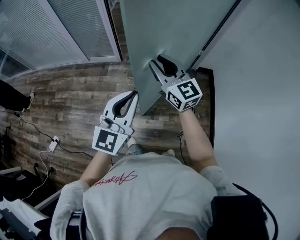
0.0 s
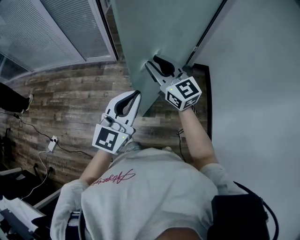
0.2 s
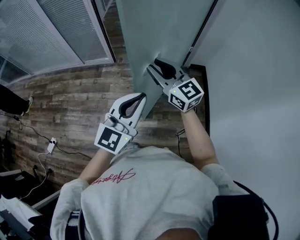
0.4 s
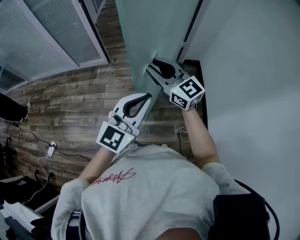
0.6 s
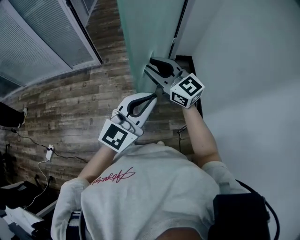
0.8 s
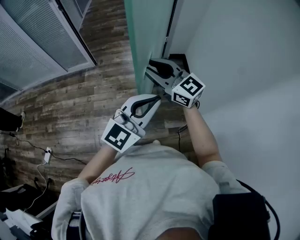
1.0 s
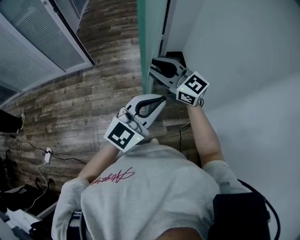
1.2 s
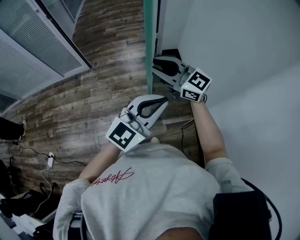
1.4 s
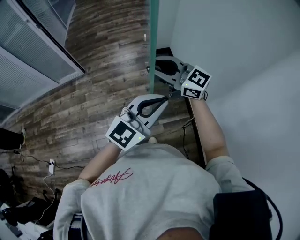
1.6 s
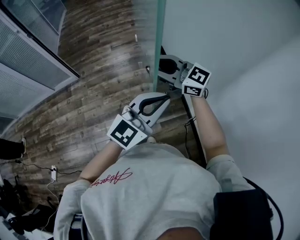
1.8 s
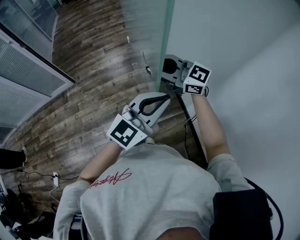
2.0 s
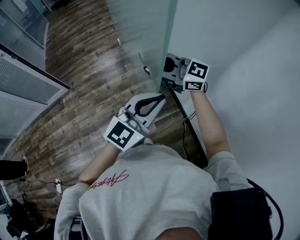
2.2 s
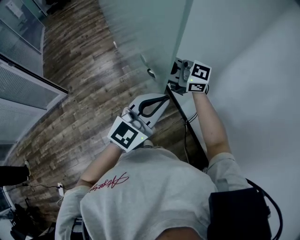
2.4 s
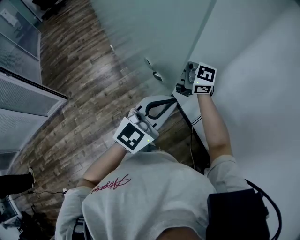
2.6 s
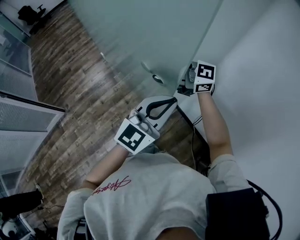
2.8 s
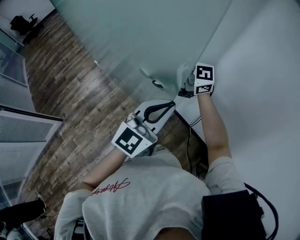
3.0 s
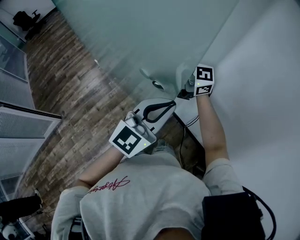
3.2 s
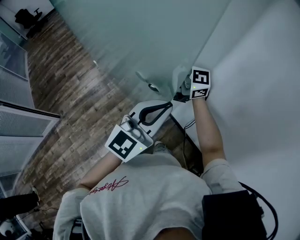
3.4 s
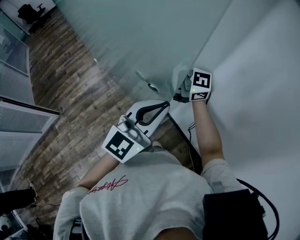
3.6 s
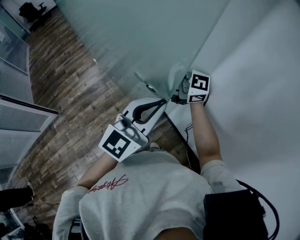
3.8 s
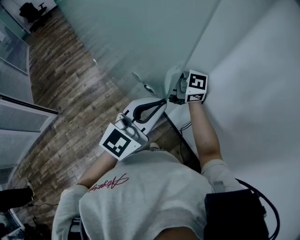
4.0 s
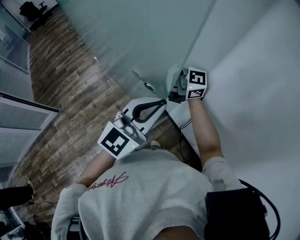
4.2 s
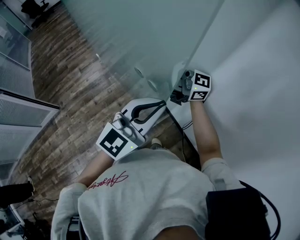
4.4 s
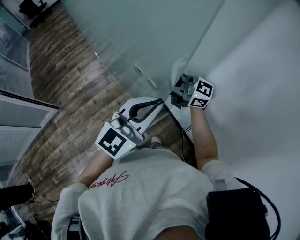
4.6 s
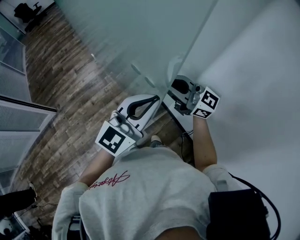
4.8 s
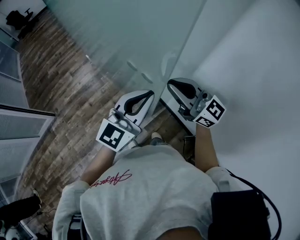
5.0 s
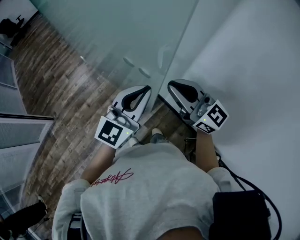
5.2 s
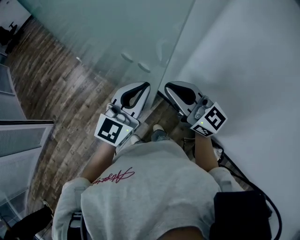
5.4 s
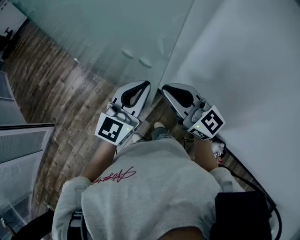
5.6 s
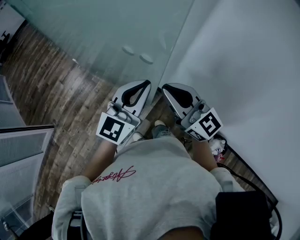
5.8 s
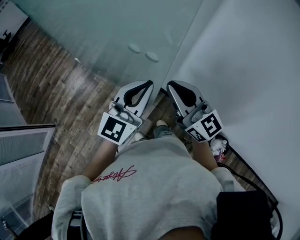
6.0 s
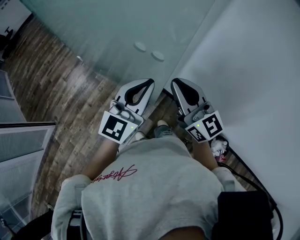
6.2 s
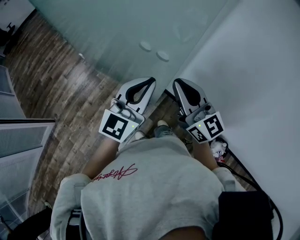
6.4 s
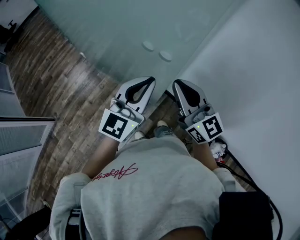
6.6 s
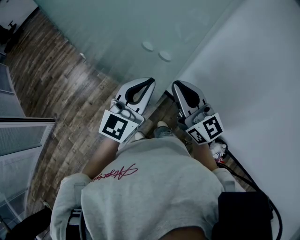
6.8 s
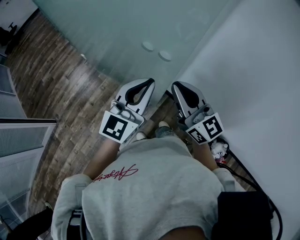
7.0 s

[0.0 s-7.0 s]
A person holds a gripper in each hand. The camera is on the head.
0.0 to 1.4 s: The grippers both shift to the right and backward by about 35 cm. The left gripper swivels some 40 degrees.
1.4 to 2.8 s: The right gripper moves approximately 25 cm, while the left gripper shifts by about 20 cm, and swivels about 30 degrees.
2.8 to 4.2 s: The right gripper shifts by some 5 cm. The left gripper moves about 10 cm.
4.2 to 5.6 s: The right gripper changes place by some 10 cm, and changes its angle by about 60 degrees; the left gripper shifts by approximately 10 cm.
5.6 to 7.0 s: The grippers make only small movements.

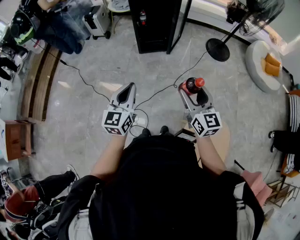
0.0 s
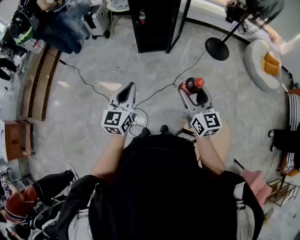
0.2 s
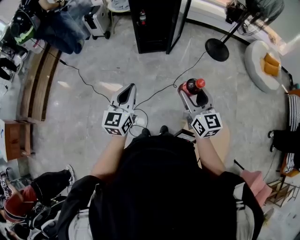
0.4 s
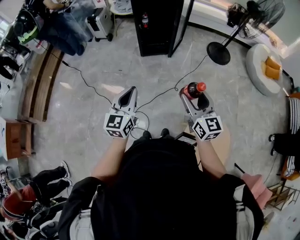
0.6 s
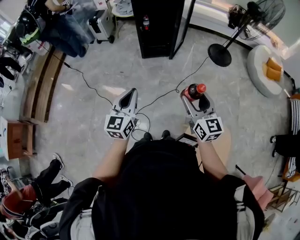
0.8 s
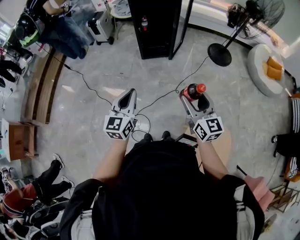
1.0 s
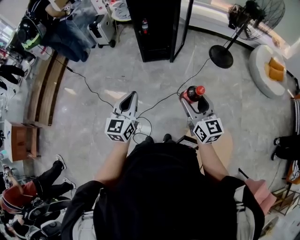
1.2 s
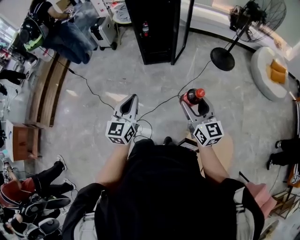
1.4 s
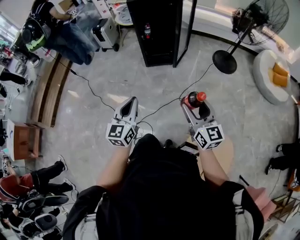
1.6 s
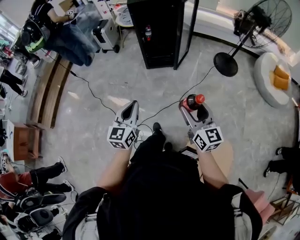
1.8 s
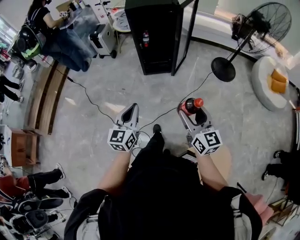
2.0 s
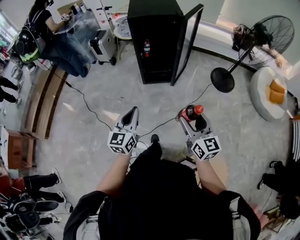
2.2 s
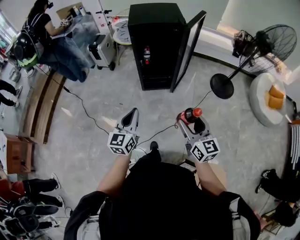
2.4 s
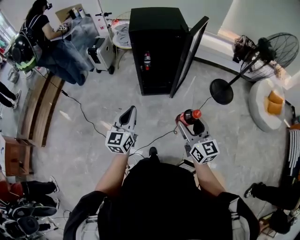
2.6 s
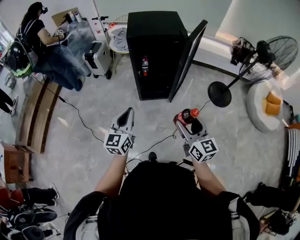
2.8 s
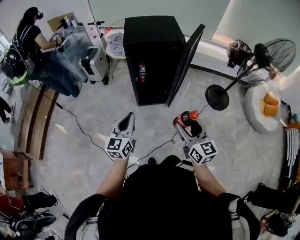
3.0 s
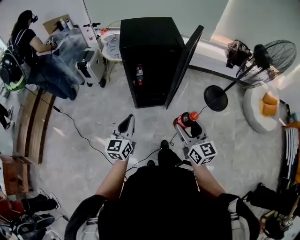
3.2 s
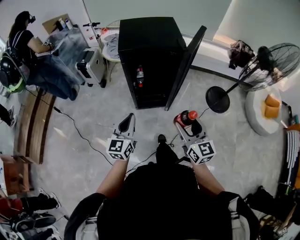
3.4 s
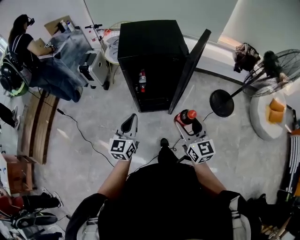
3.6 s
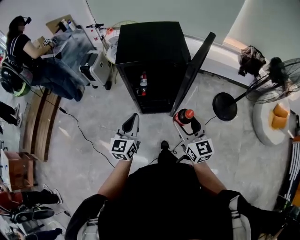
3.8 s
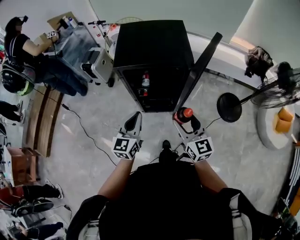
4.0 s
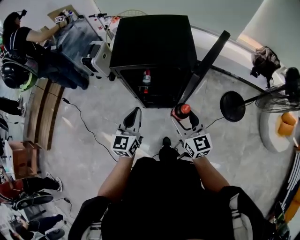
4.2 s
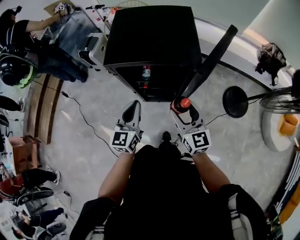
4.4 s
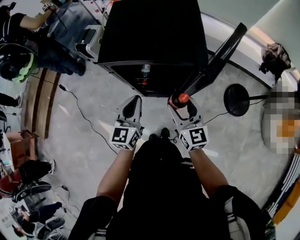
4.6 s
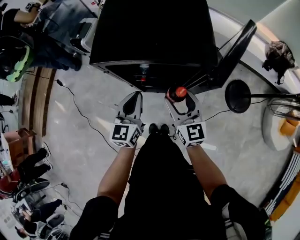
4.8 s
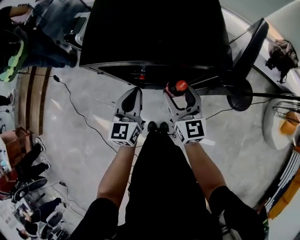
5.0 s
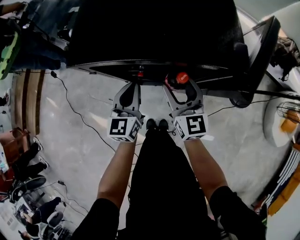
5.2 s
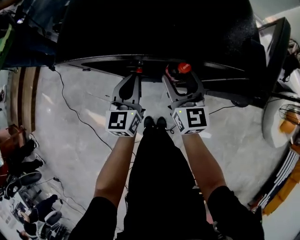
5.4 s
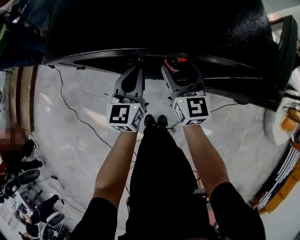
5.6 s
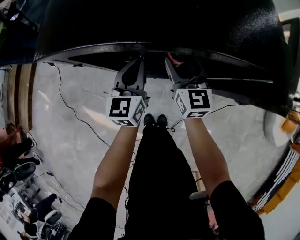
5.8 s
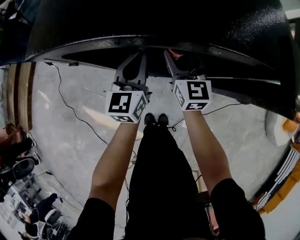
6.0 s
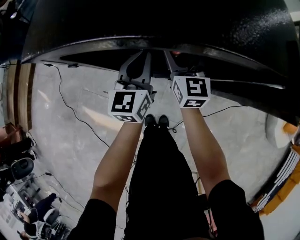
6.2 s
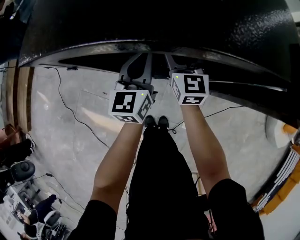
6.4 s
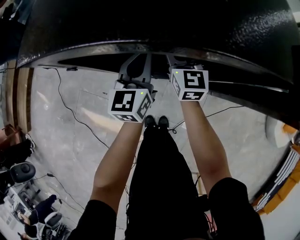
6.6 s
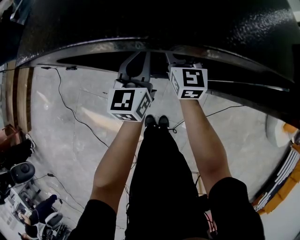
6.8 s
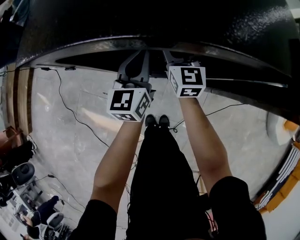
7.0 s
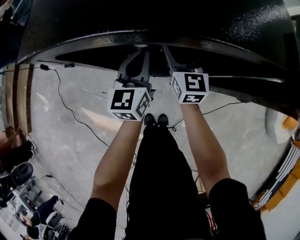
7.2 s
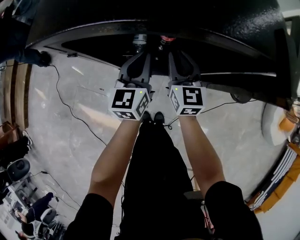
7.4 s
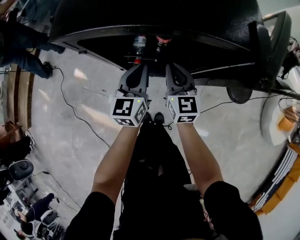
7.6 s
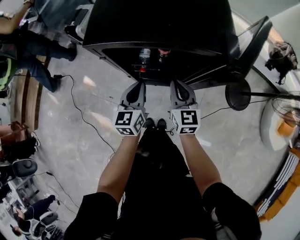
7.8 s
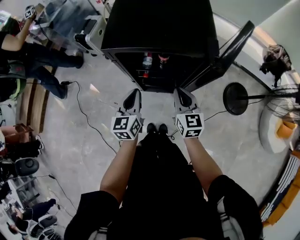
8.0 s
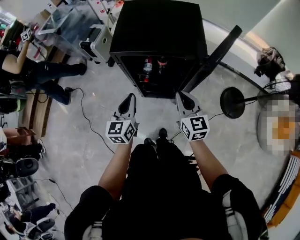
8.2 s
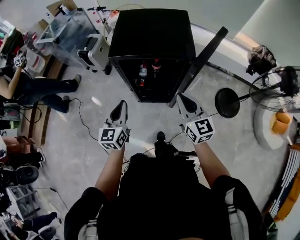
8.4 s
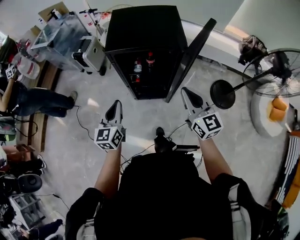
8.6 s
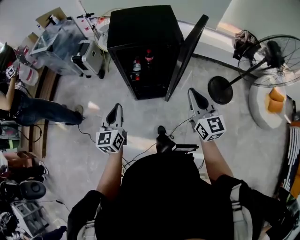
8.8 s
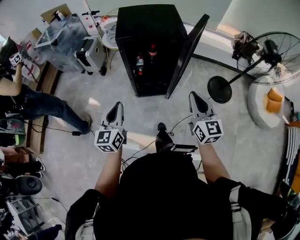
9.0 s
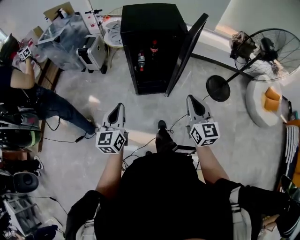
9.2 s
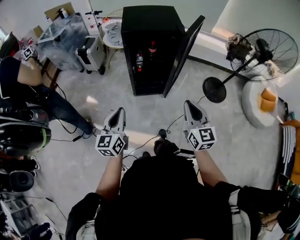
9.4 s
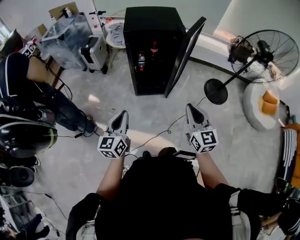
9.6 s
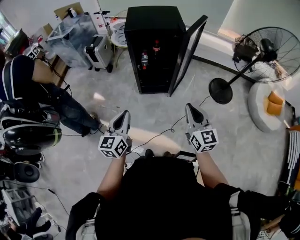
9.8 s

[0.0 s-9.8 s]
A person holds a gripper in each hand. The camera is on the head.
0.0 to 1.4 s: The grippers move only a little.
1.4 to 2.8 s: Both grippers move forward, approximately 35 cm.
2.8 to 4.2 s: The two grippers go approximately 30 cm forward.
4.2 to 5.6 s: The left gripper moves downward and forward, approximately 30 cm. The right gripper travels forward and downward by roughly 30 cm.
5.6 to 7.0 s: The right gripper heads forward and downward, covering some 15 cm. Meanwhile the left gripper goes roughly 5 cm forward.
7.0 to 8.4 s: The right gripper moves upward and backward, approximately 50 cm, and closes up. The left gripper shifts approximately 40 cm backward and upward.
8.4 to 9.8 s: The grippers both shift backward by some 35 cm.

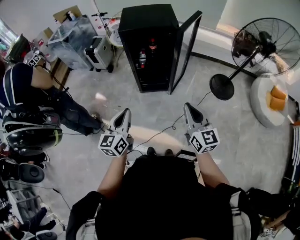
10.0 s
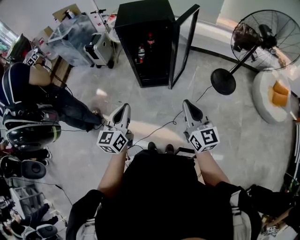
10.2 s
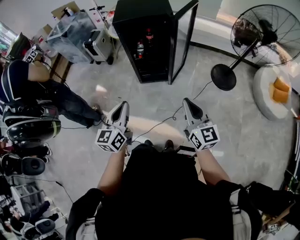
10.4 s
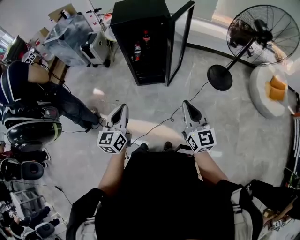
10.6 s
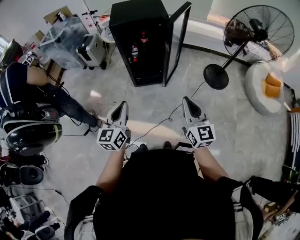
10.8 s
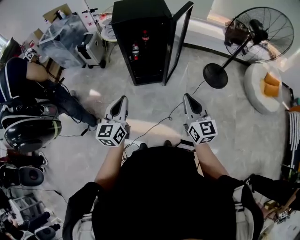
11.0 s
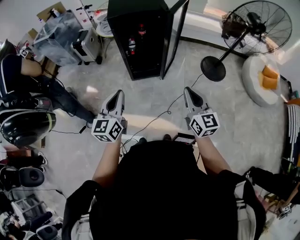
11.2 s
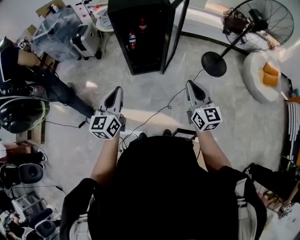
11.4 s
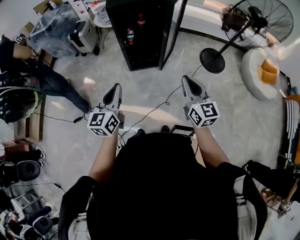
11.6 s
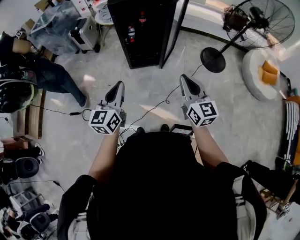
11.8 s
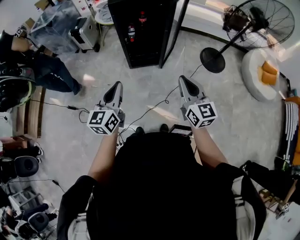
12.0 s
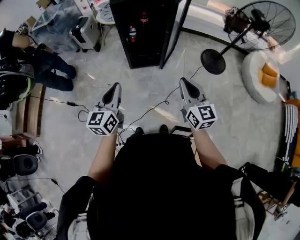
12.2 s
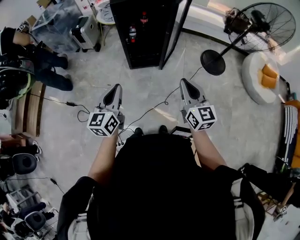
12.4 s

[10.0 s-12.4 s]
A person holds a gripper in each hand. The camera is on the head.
10.0 to 12.4 s: The grippers move only a little.

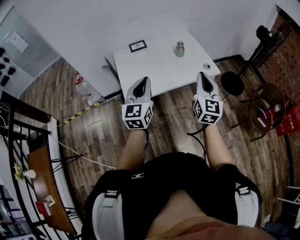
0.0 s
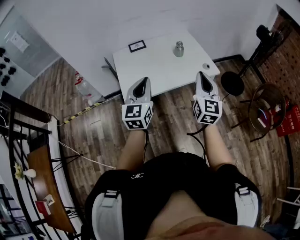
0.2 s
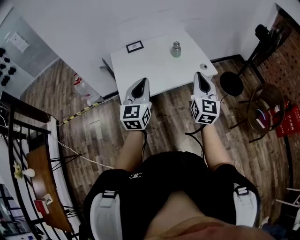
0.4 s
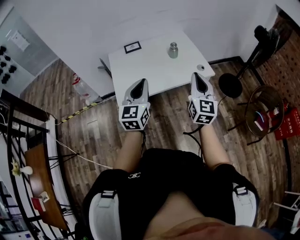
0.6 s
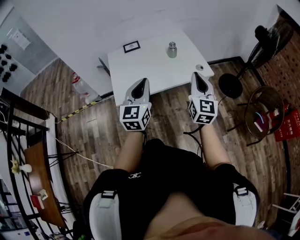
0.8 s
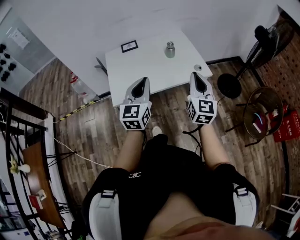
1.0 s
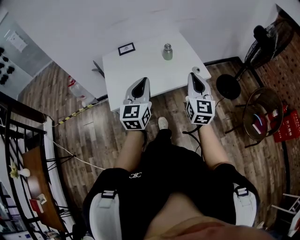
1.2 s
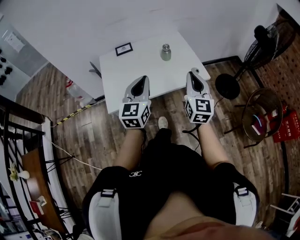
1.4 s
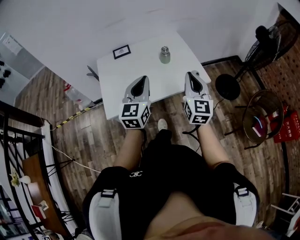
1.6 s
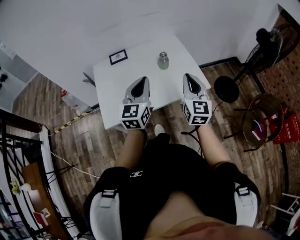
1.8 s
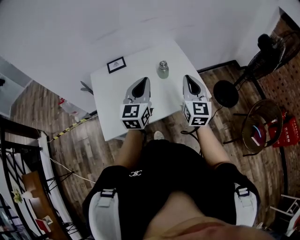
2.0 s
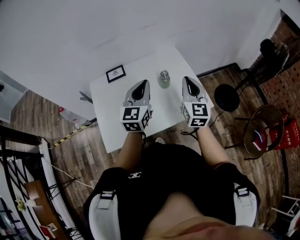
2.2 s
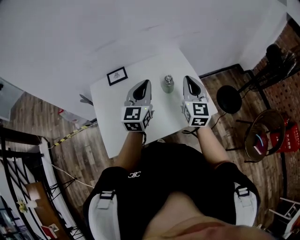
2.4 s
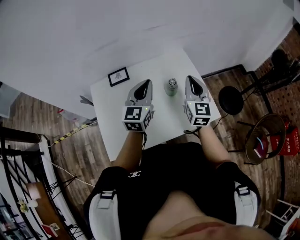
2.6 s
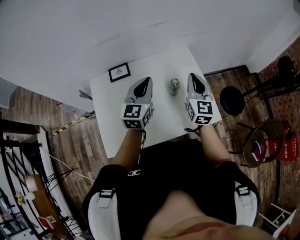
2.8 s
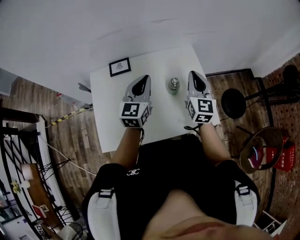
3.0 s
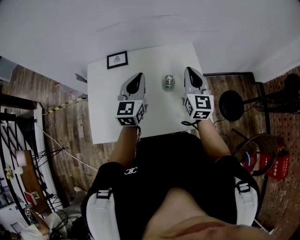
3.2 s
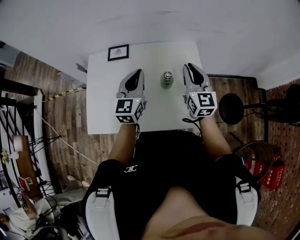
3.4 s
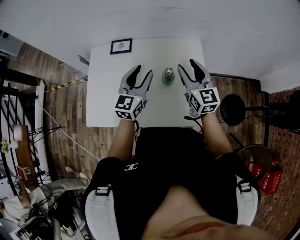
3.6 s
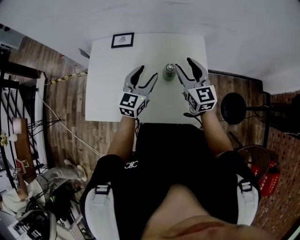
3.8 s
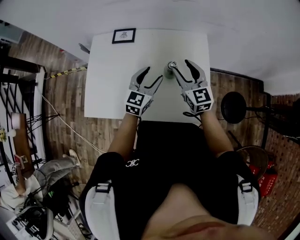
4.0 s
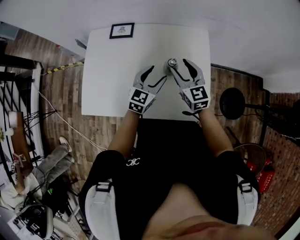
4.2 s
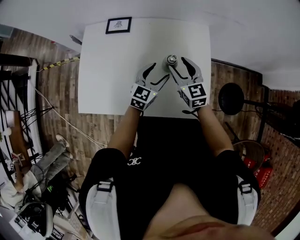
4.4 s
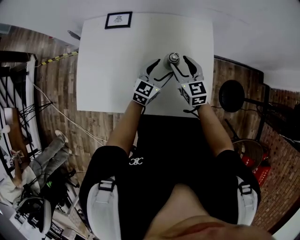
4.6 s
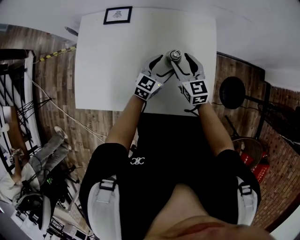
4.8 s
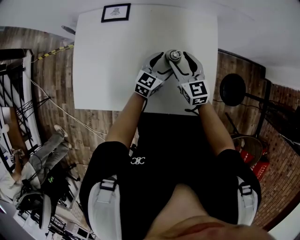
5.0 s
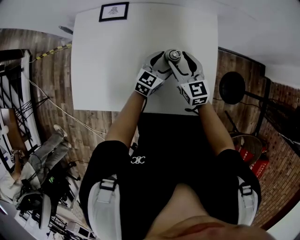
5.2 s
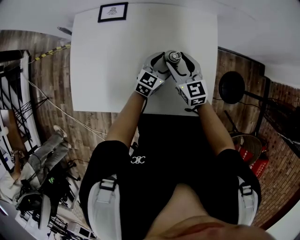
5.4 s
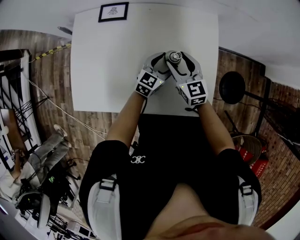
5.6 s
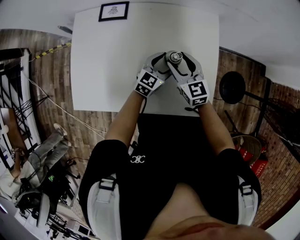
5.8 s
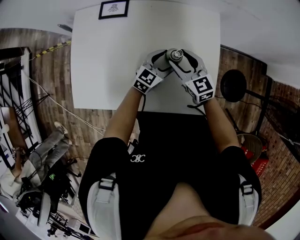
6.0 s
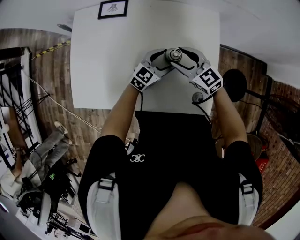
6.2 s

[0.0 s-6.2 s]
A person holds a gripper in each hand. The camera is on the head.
0.0 to 1.6 s: The two grippers go roughly 15 cm forward and to the right.
1.6 to 3.2 s: The grippers both shift forward by about 35 cm.
3.2 to 4.6 s: The left gripper heads downward and to the right, covering some 20 cm, and opens its fingers. Meanwhile the right gripper travels downward by about 15 cm, swivels approximately 30 degrees, and opens up.
4.6 to 6.2 s: The left gripper shifts roughly 5 cm downward. The right gripper turns by approximately 30 degrees.
